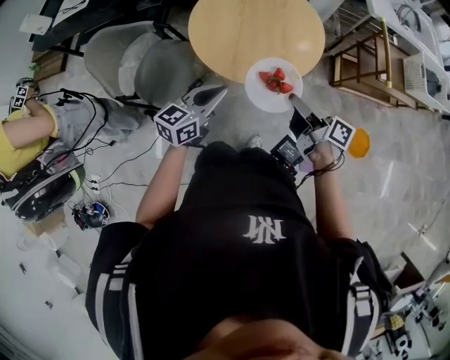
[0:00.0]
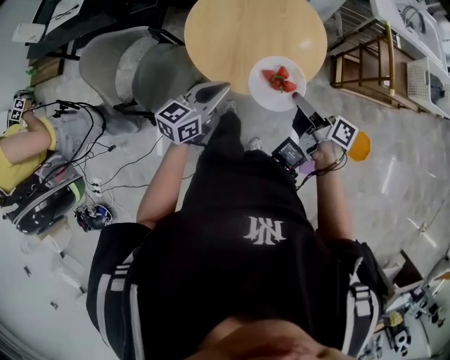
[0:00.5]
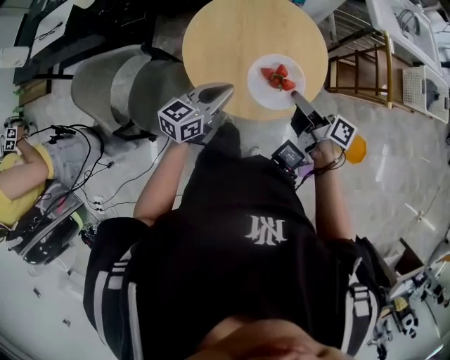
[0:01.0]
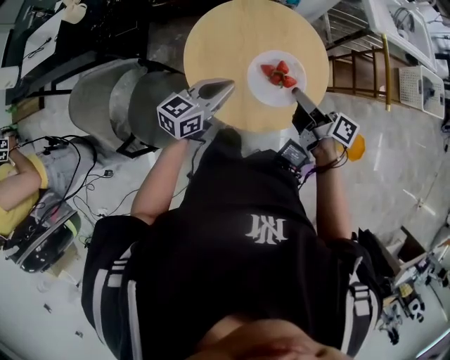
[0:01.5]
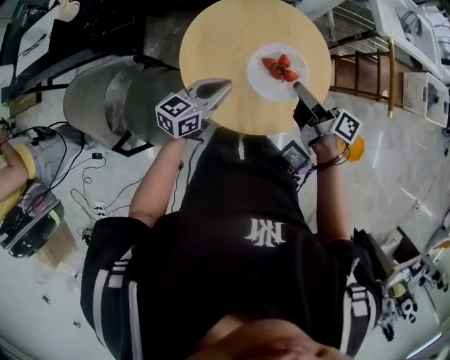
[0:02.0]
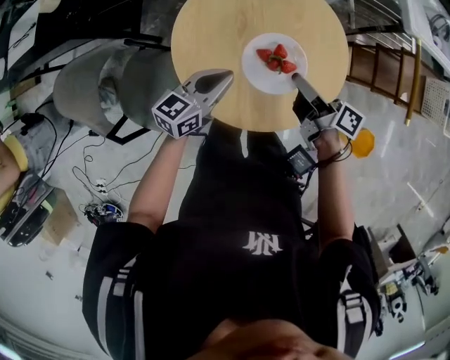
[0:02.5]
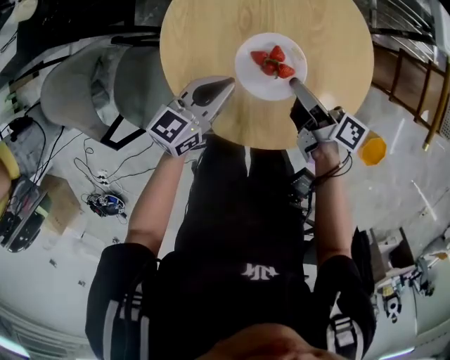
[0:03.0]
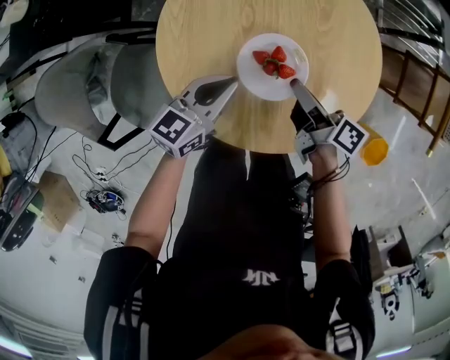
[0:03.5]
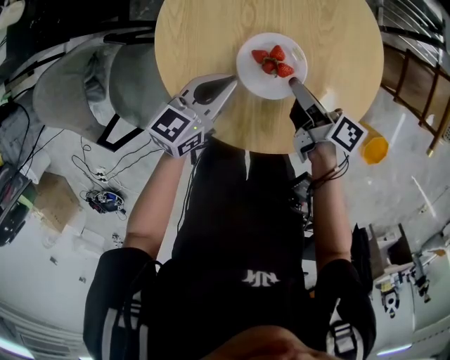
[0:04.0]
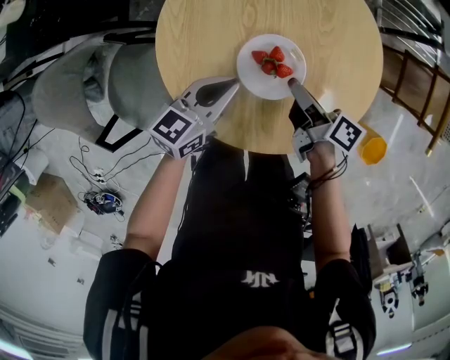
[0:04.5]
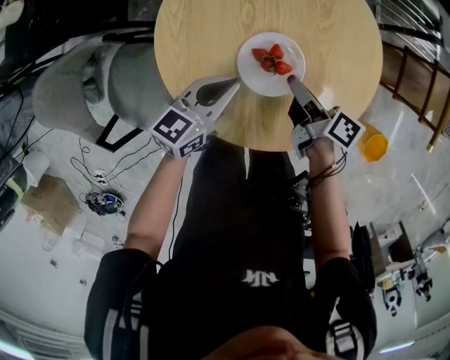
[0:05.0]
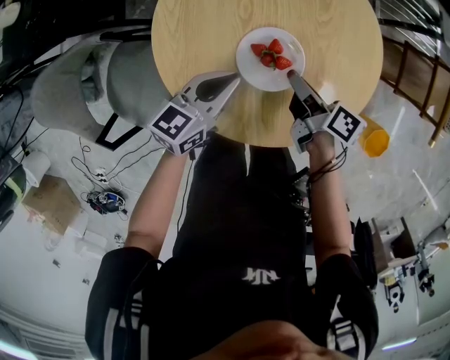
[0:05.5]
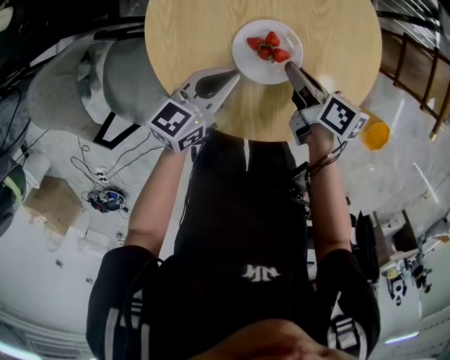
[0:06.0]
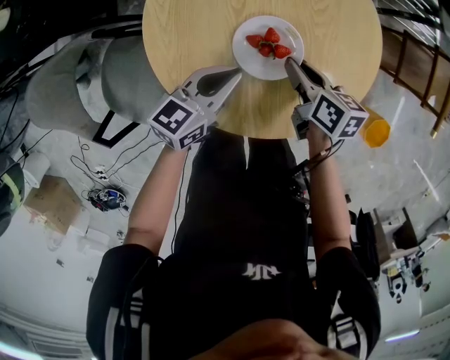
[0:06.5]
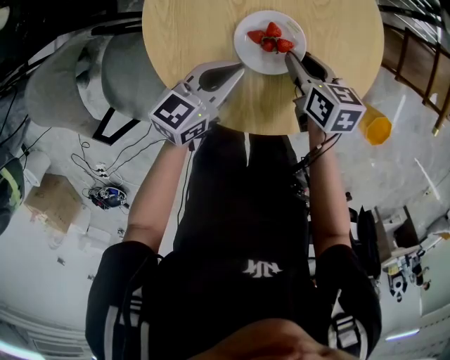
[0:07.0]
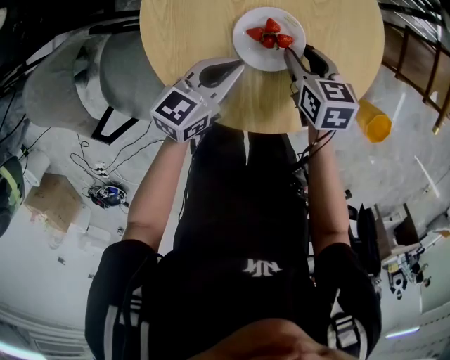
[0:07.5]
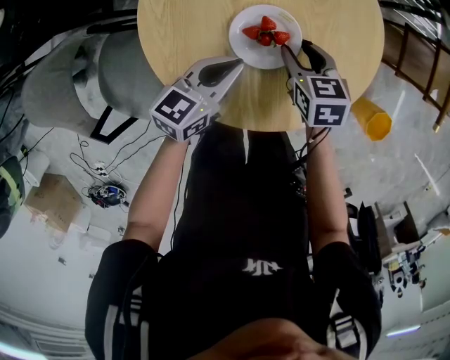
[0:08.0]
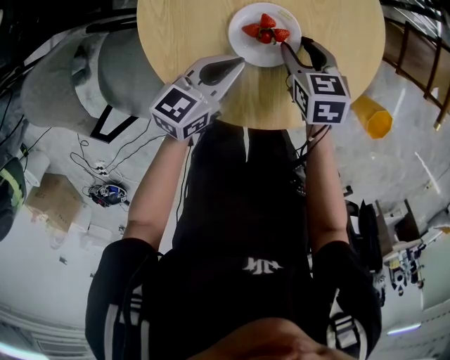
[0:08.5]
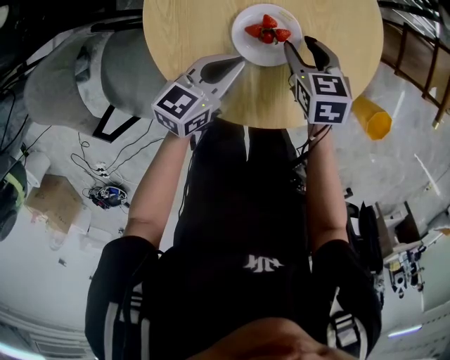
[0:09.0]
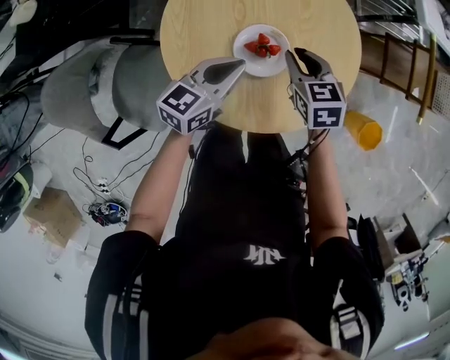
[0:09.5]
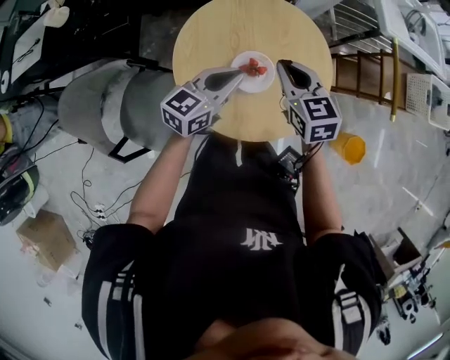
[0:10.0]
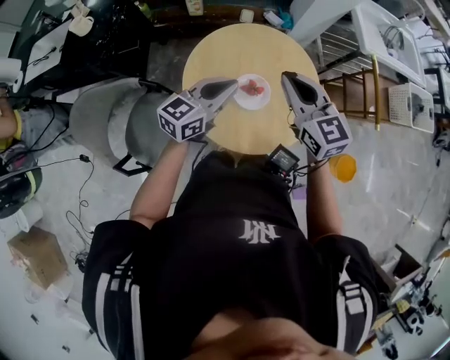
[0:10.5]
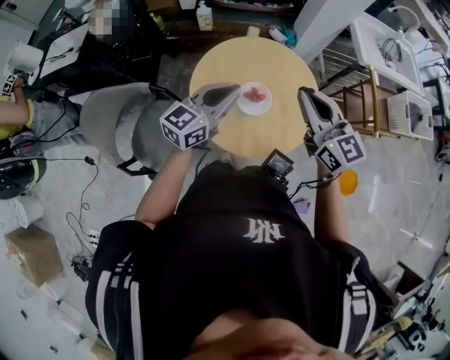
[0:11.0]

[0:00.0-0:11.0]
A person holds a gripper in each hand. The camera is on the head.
0:00.0 to 0:02.0: The grippers both shift forward by approximately 20 cm.
0:02.0 to 0:03.5: The grippers both shift downward by some 15 cm.
0:03.5 to 0:05.5: There are only small adjustments of the grippers.
0:05.5 to 0:07.5: The right gripper rotates around the line of its fingers by about 50 degrees, counterclockwise from behind, and opens.
0:07.5 to 0:09.0: There are only small adjustments of the grippers.
0:09.0 to 0:11.0: The two grippers go some 35 cm upward. The left gripper rotates roughly 30 degrees; the right gripper tips its fingers upward by about 50 degrees, and closes up.

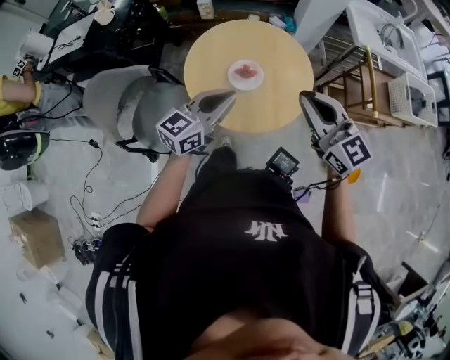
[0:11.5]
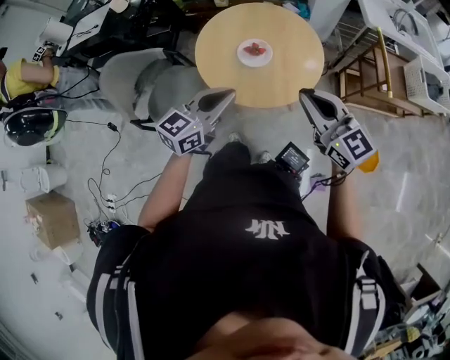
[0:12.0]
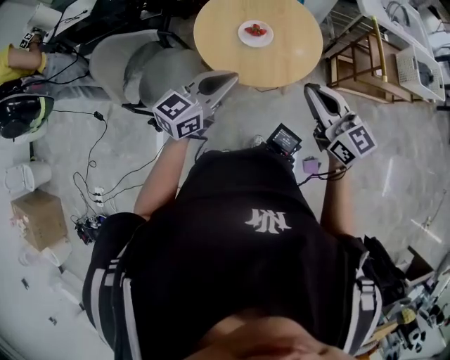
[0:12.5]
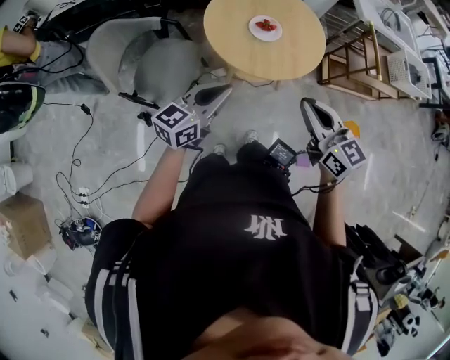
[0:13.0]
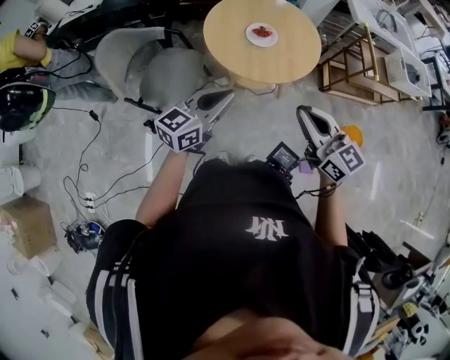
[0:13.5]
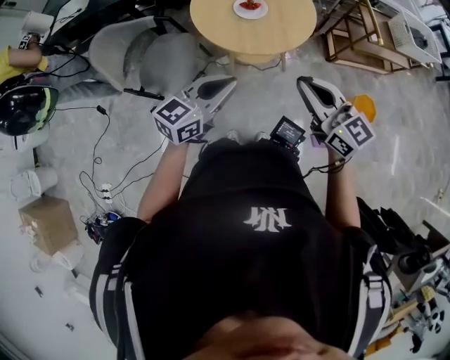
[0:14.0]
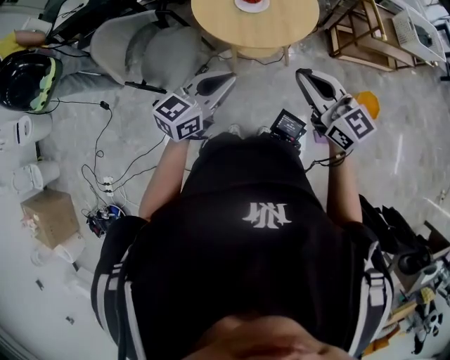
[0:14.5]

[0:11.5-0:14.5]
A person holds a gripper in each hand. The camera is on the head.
0:11.5 to 0:13.0: The two grippers go roughly 25 cm backward and to the left.
0:13.0 to 0:14.5: The left gripper heads to the right and backward, covering approximately 10 cm; the right gripper moves to the right, some 5 cm.

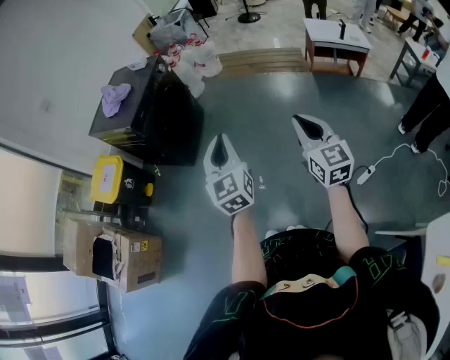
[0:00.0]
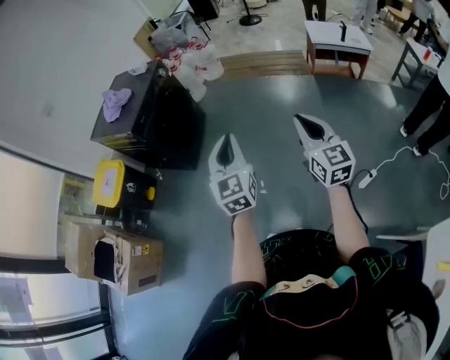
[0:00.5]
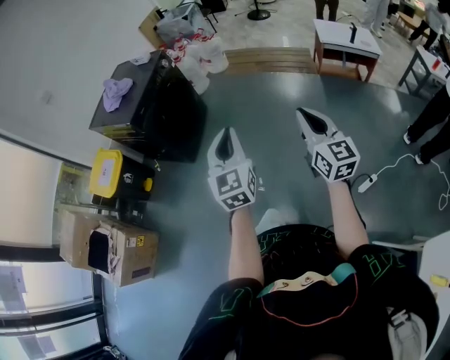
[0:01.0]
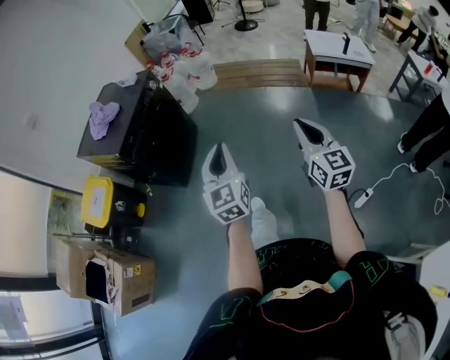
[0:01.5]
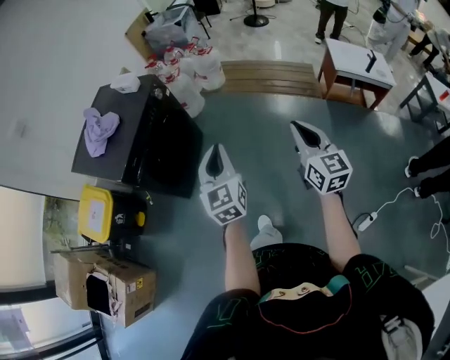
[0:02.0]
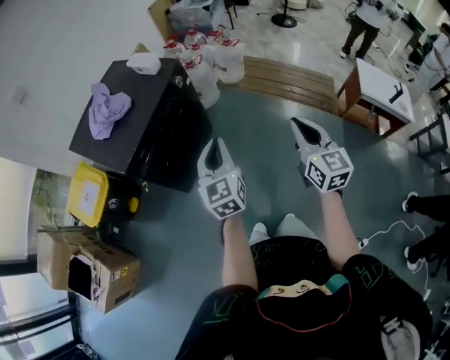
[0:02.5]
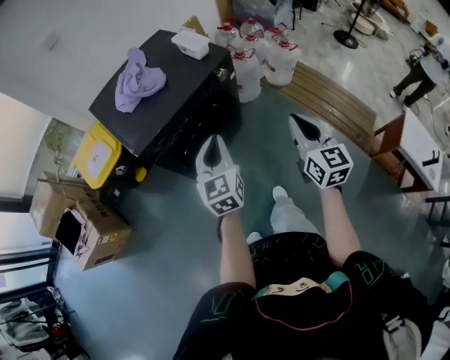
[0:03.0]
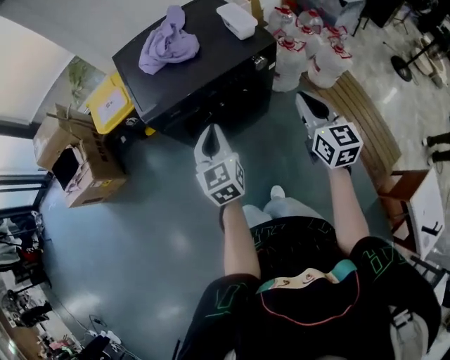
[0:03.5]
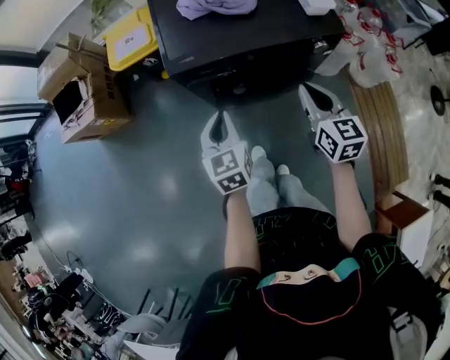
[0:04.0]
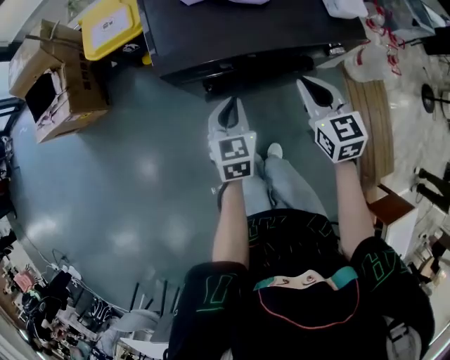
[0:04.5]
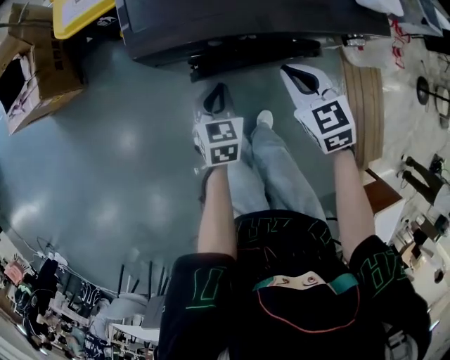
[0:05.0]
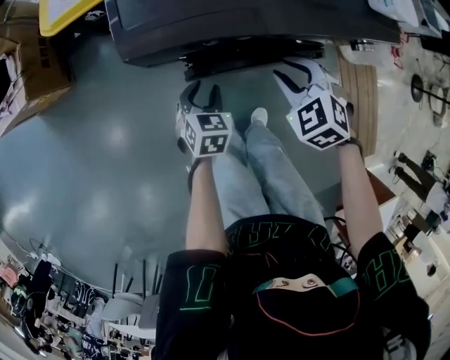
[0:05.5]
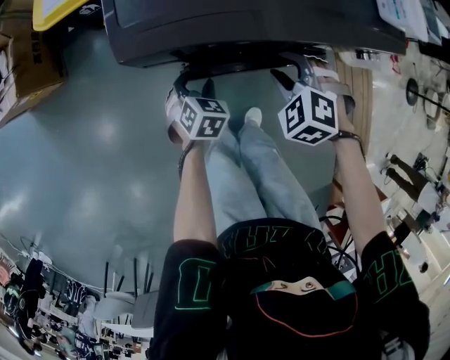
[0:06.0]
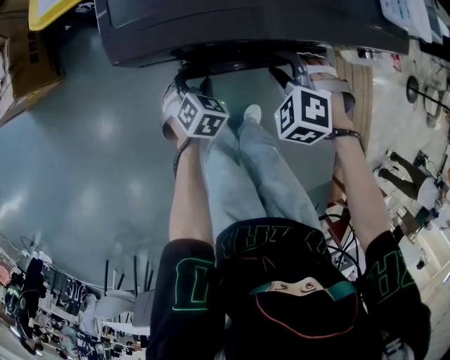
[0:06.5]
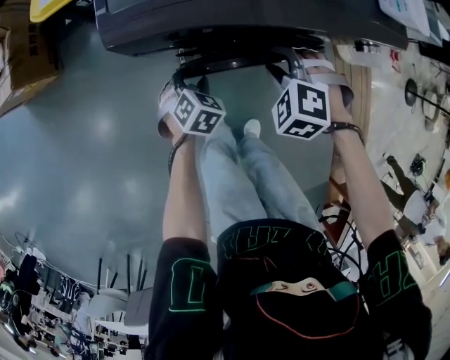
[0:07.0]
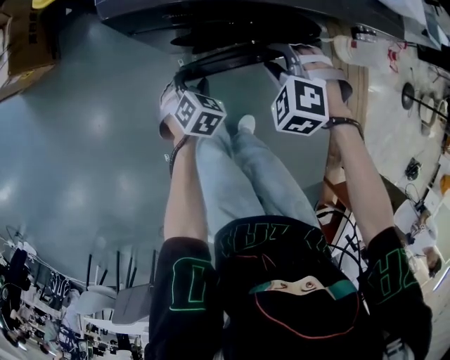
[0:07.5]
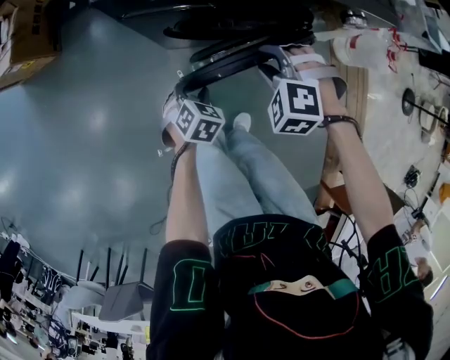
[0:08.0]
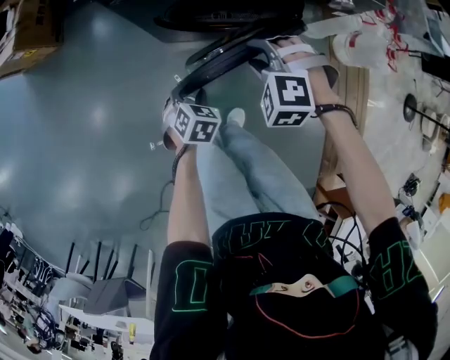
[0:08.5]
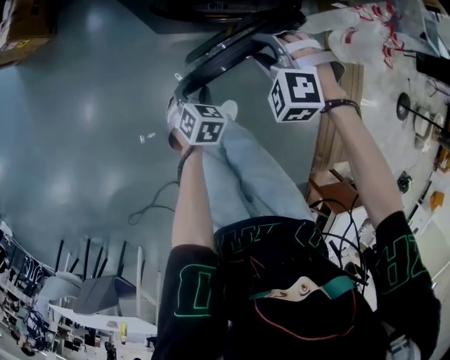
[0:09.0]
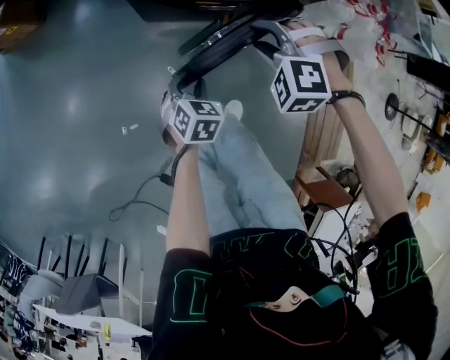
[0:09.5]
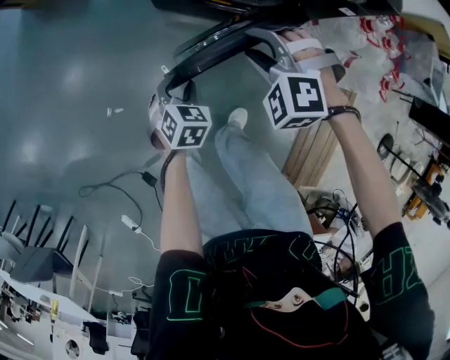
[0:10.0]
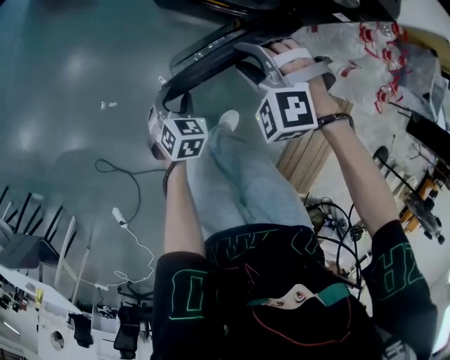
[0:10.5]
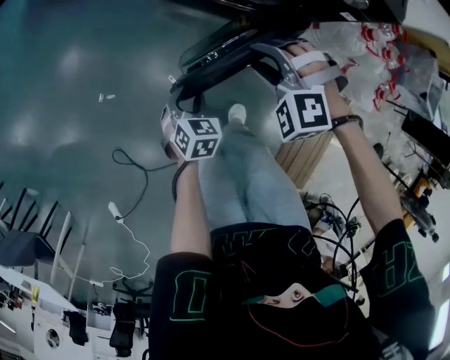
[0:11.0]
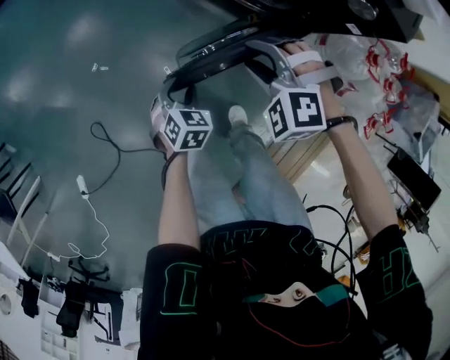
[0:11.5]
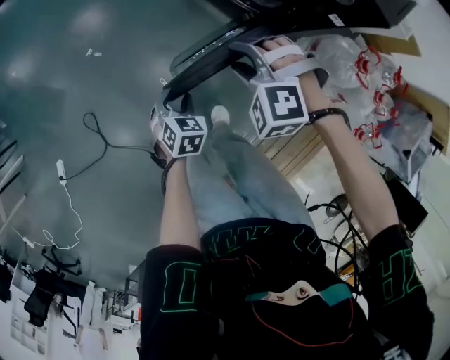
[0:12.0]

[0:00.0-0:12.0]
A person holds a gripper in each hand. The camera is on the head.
0:00.0 to 0:02.0: The two grippers go roughly 35 cm forward.
0:02.0 to 0:04.0: The left gripper shifts by some 35 cm, and swivels approximately 70 degrees. Meanwhile the right gripper changes place by approximately 50 cm, and changes its angle by some 70 degrees.
0:04.0 to 0:06.0: The left gripper shifts roughly 30 cm downward, points its fingers some 30 degrees further downward, and opens. Meanwhile the right gripper heads downward and forward, covering roughly 25 cm, rotates around the line of its fingers by roughly 70 degrees, counterclockwise from behind, and opens.
0:06.0 to 0:08.0: The left gripper heads backward and to the right, covering some 15 cm. The right gripper heads backward, covering approximately 10 cm.
0:08.0 to 0:10.0: The right gripper shifts by some 10 cm, and swivels about 30 degrees. Meanwhile the left gripper shifts by roughly 20 cm, and rotates some 30 degrees.
0:10.0 to 0:12.0: The right gripper moves some 15 cm, and changes its angle by about 30 degrees; the left gripper moves some 20 cm, and changes its angle by about 30 degrees.
